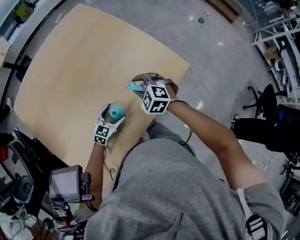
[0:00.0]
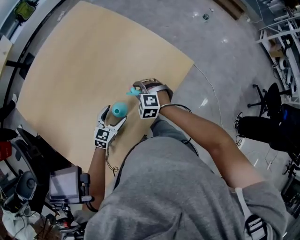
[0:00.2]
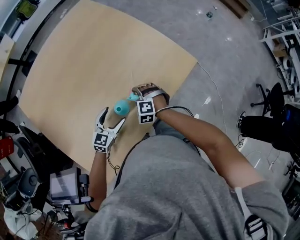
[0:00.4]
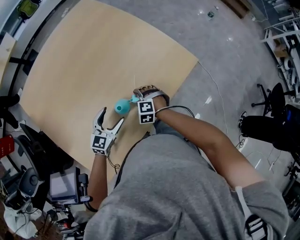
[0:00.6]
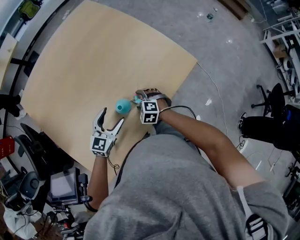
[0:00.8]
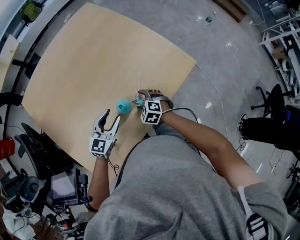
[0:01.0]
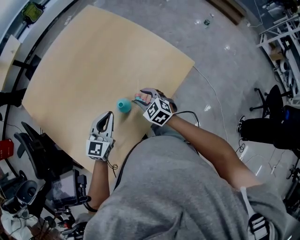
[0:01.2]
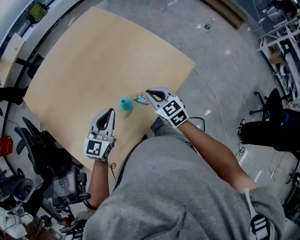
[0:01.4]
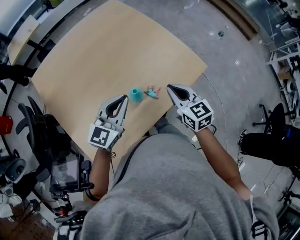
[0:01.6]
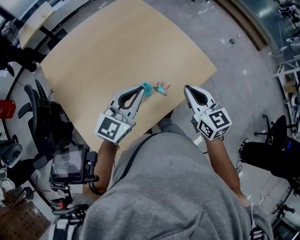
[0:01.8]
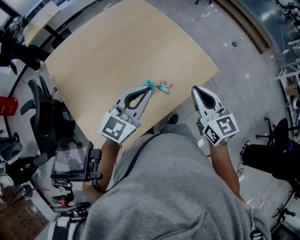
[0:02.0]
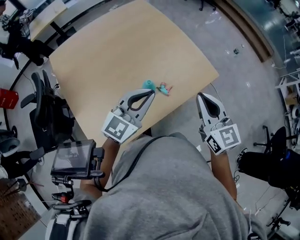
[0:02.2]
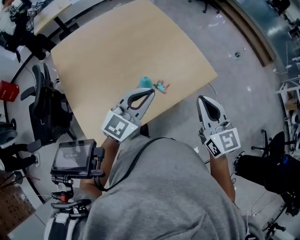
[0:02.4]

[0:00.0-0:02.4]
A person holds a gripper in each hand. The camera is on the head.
0:00.0 to 0:01.2: The left gripper is displaced upward and to the left by roughly 20 cm, swivels roughly 20 degrees, and closes, while the right gripper moves backward, roughly 10 cm, moves roughly 15 cm downward and comes back, and rotates some 20 degrees.
0:01.2 to 0:02.4: The right gripper travels upward and backward by about 30 cm, points its fingers about 30 degrees further upward, and closes up. Meanwhile the left gripper travels upward and backward by about 15 cm.

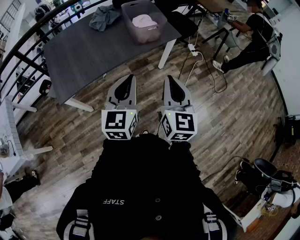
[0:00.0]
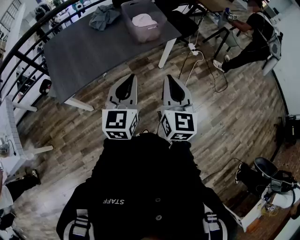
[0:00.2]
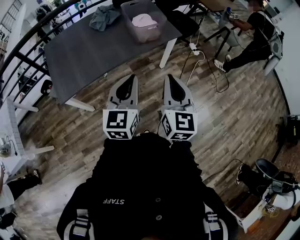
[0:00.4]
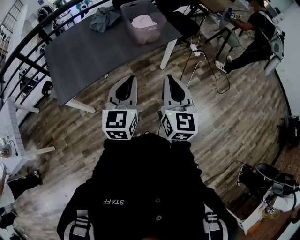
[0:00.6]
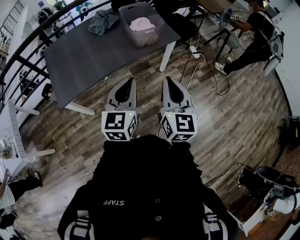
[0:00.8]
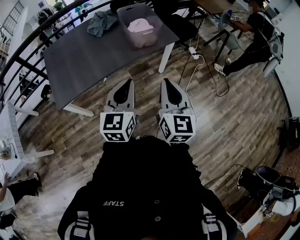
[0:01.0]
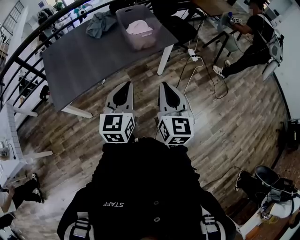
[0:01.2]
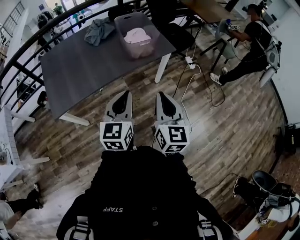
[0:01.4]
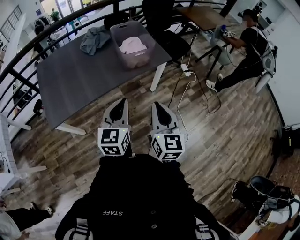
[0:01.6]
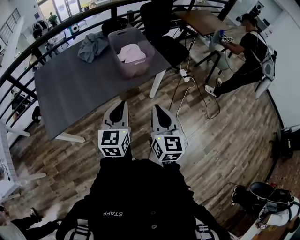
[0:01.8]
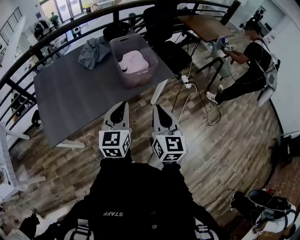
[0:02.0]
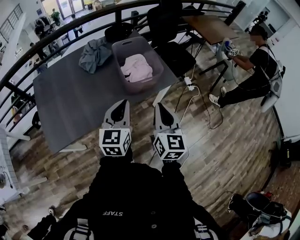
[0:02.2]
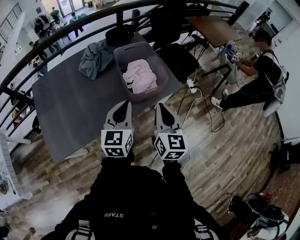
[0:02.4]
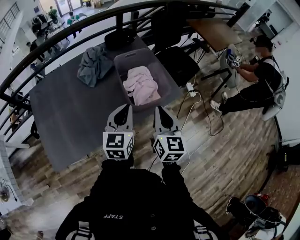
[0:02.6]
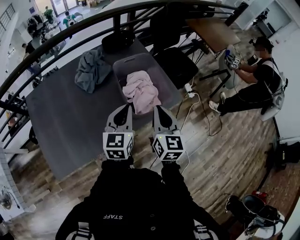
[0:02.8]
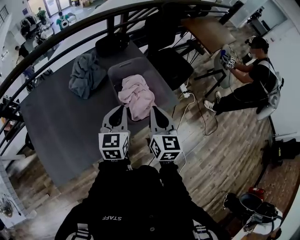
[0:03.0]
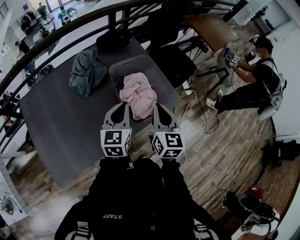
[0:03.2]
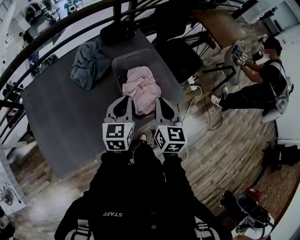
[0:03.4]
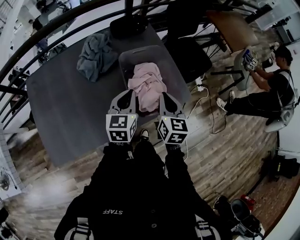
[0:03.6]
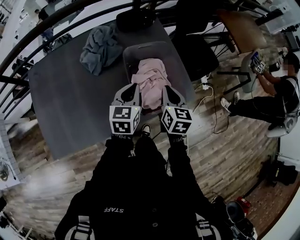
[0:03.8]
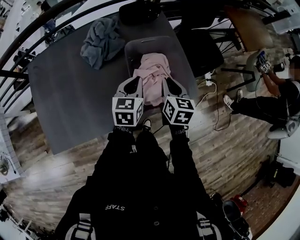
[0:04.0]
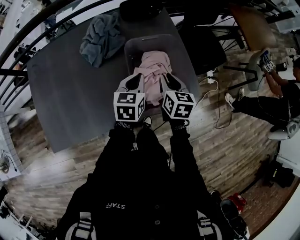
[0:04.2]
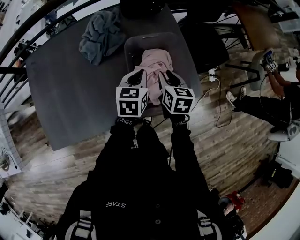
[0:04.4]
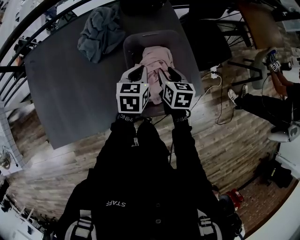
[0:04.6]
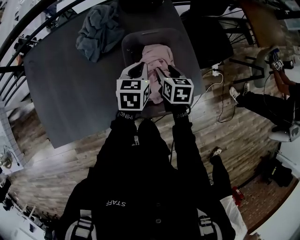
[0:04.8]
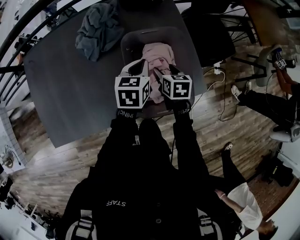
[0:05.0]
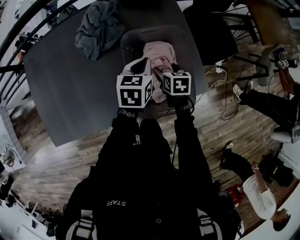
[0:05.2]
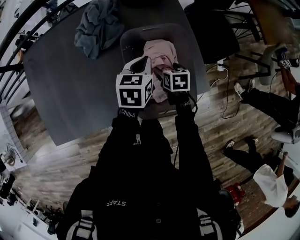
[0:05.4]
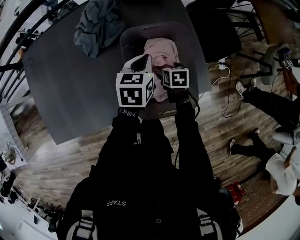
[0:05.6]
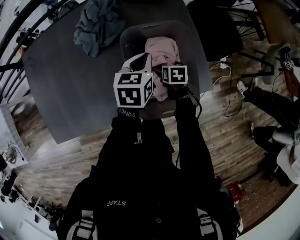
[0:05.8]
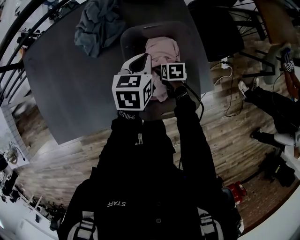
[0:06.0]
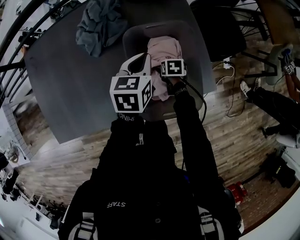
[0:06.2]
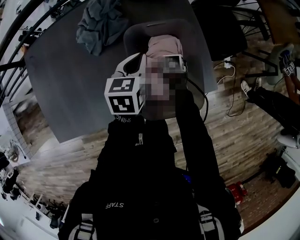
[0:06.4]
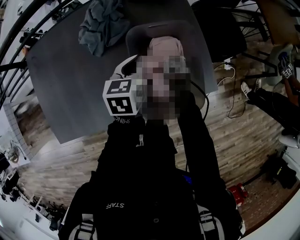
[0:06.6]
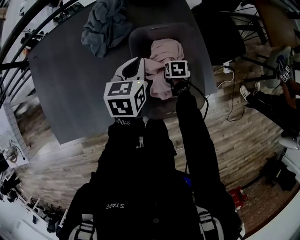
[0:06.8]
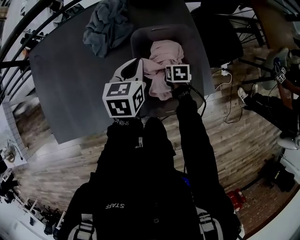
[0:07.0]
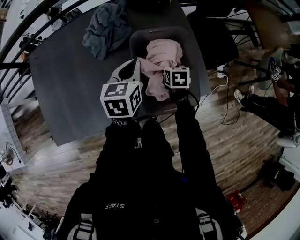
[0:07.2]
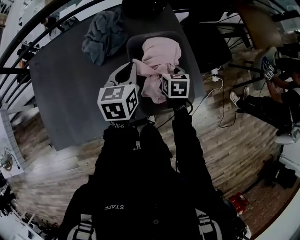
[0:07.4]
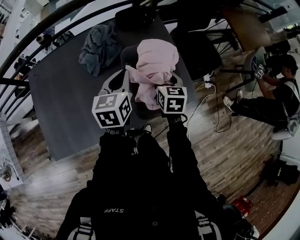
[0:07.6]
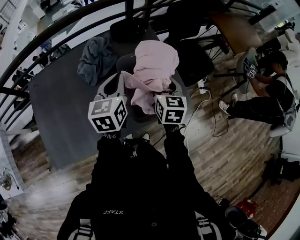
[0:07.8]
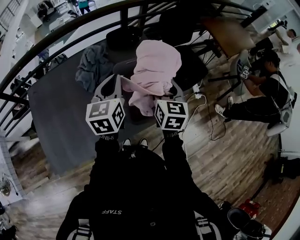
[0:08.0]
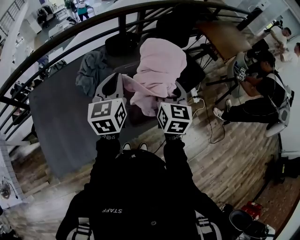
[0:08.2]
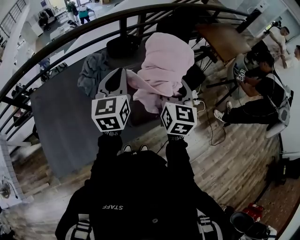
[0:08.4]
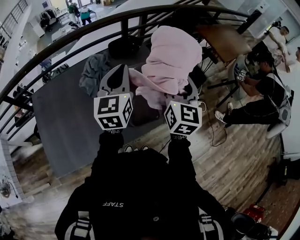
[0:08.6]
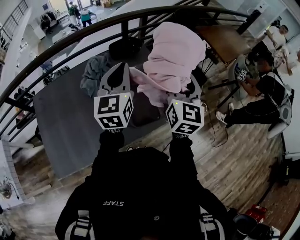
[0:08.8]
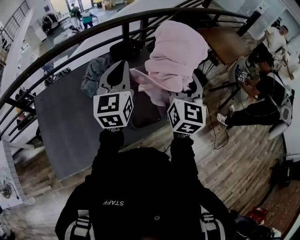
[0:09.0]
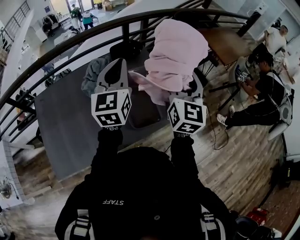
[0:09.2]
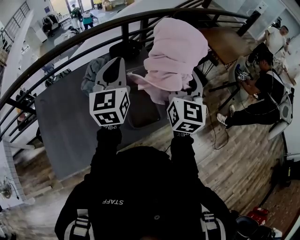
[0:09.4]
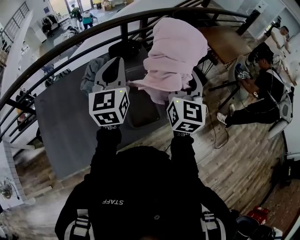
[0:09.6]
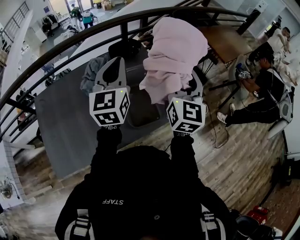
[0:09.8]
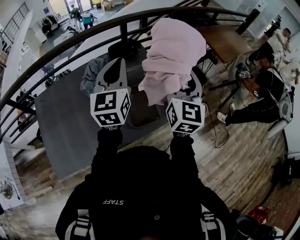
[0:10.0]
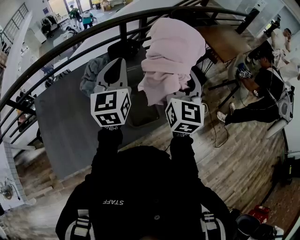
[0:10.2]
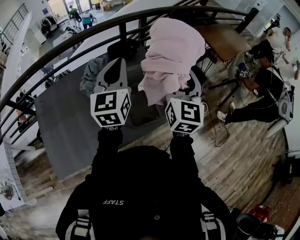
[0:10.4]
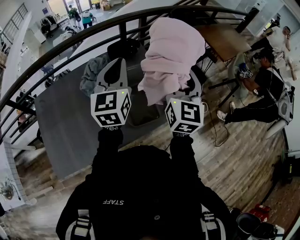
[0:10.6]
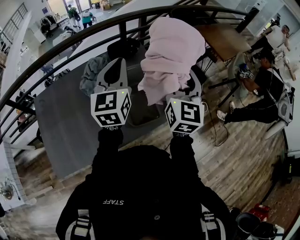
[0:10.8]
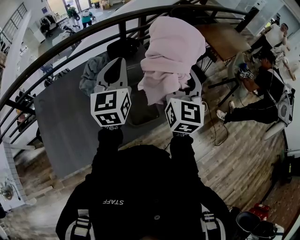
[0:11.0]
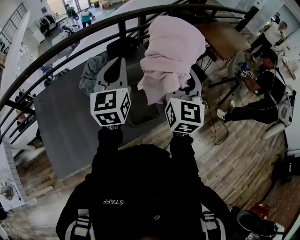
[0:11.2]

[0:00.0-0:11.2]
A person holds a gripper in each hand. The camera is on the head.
0:00.0 to 0:01.6: The right gripper shifts about 10 cm forward, while the left gripper travels forward and downward by some 10 cm.
0:01.6 to 0:03.2: The two grippers travel together, forward, about 50 cm.
0:03.2 to 0:04.8: The left gripper travels forward and downward by about 20 cm, and turns by about 20 degrees, while the right gripper shifts approximately 30 cm downward and forward, rotates roughly 40 degrees, and opens up.
0:04.8 to 0:06.4: The right gripper travels downward by about 20 cm, swivels about 30 degrees, and opens up.
0:06.4 to 0:08.0: The right gripper heads upward, covering about 40 cm, points its fingers roughly 50 degrees further upward, and closes. Meanwhile the left gripper shifts about 20 cm upward, and turns by some 20 degrees.
0:08.0 to 0:09.6: Both grippers move upward, about 15 cm. The left gripper swivels roughly 20 degrees; the right gripper rotates some 30 degrees.
0:09.6 to 0:11.2: There are only small adjustments of the grippers.

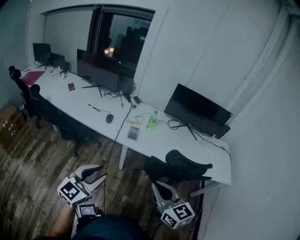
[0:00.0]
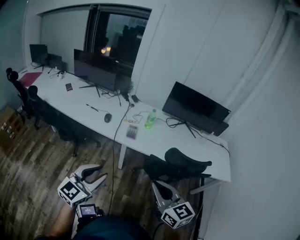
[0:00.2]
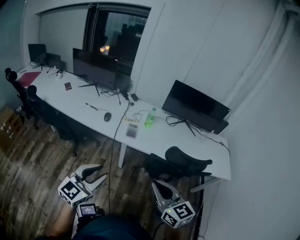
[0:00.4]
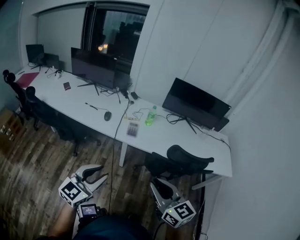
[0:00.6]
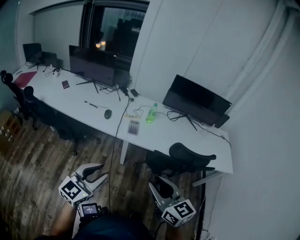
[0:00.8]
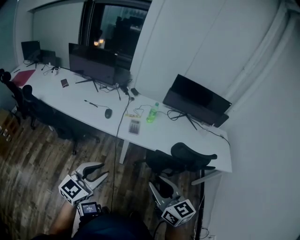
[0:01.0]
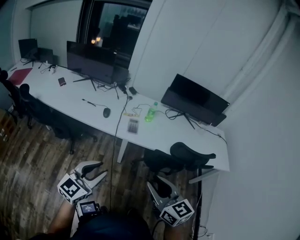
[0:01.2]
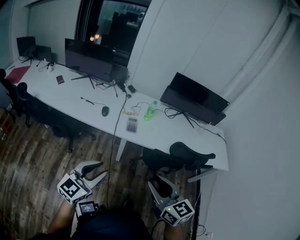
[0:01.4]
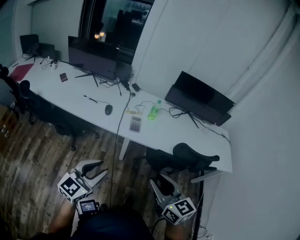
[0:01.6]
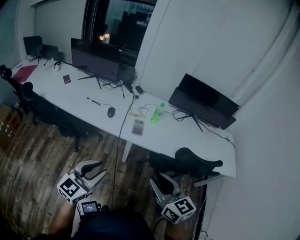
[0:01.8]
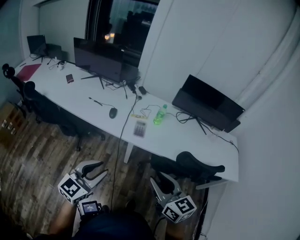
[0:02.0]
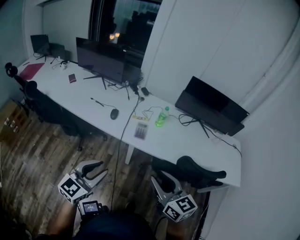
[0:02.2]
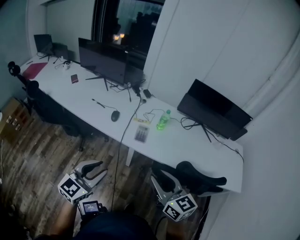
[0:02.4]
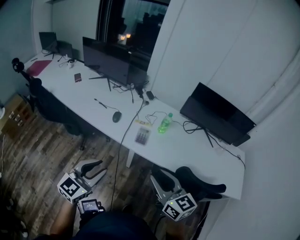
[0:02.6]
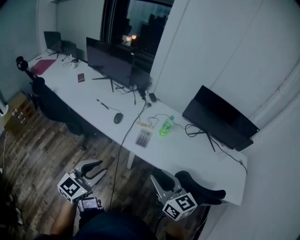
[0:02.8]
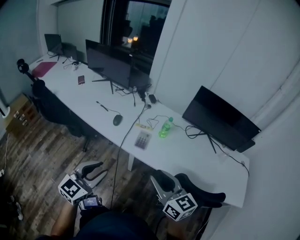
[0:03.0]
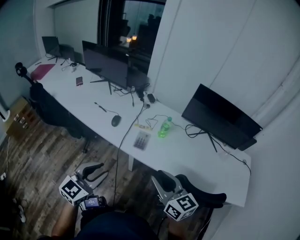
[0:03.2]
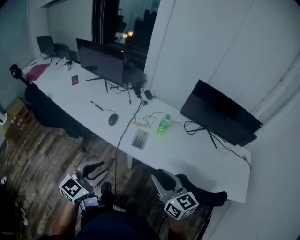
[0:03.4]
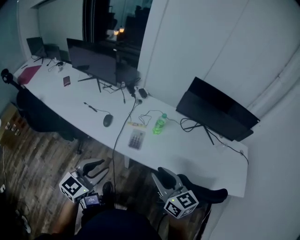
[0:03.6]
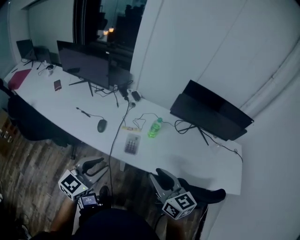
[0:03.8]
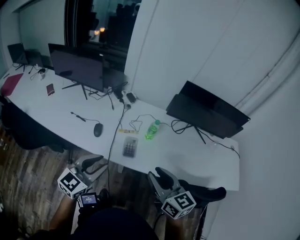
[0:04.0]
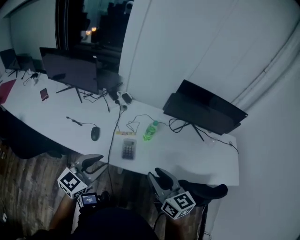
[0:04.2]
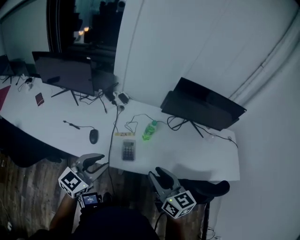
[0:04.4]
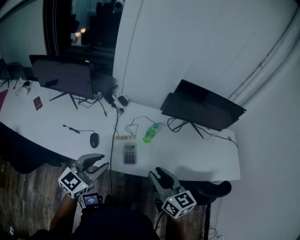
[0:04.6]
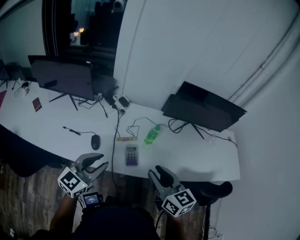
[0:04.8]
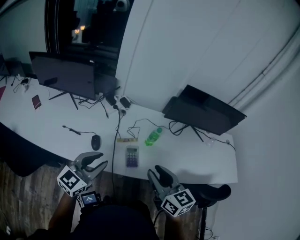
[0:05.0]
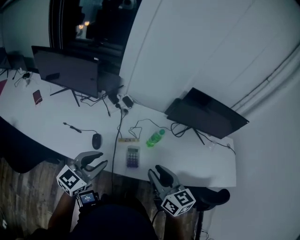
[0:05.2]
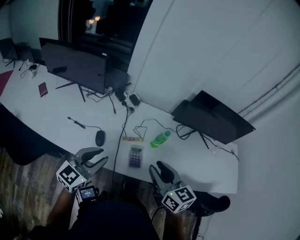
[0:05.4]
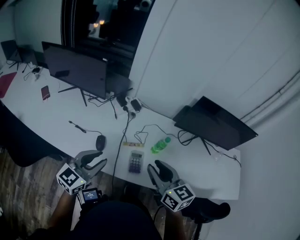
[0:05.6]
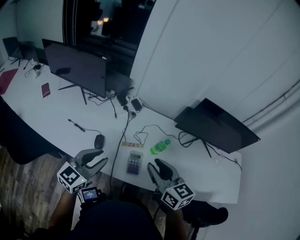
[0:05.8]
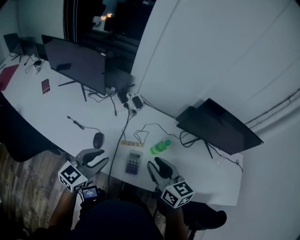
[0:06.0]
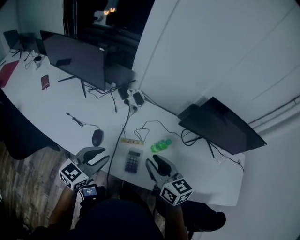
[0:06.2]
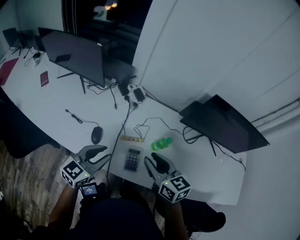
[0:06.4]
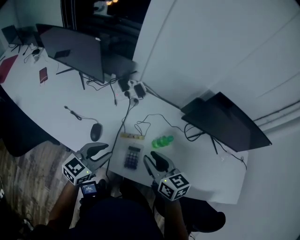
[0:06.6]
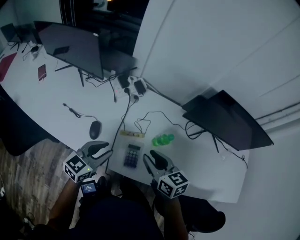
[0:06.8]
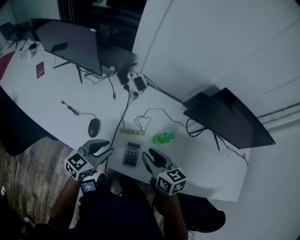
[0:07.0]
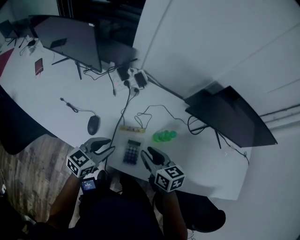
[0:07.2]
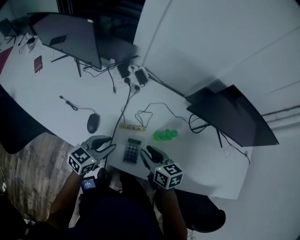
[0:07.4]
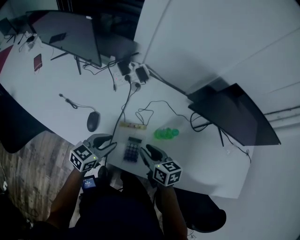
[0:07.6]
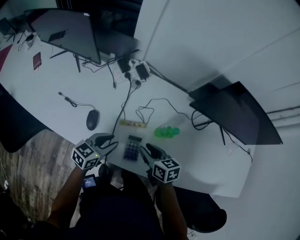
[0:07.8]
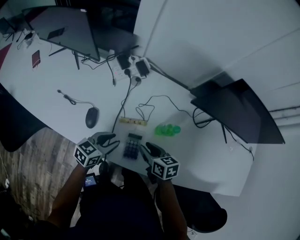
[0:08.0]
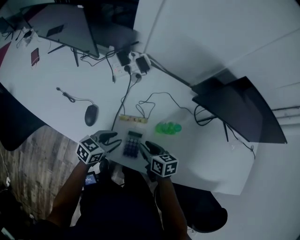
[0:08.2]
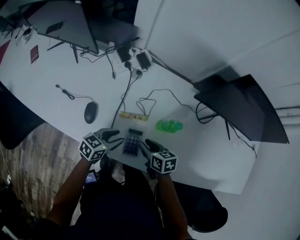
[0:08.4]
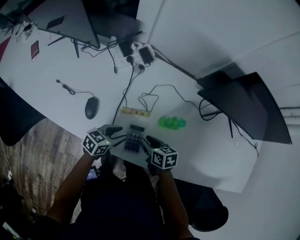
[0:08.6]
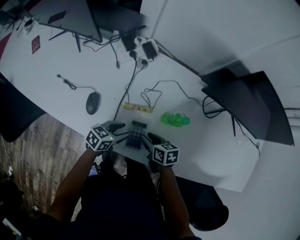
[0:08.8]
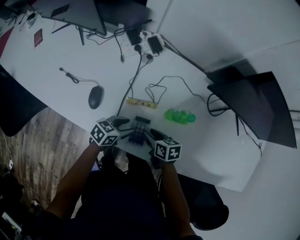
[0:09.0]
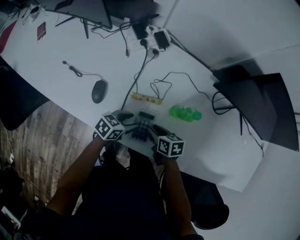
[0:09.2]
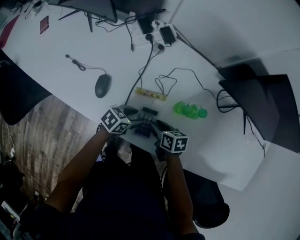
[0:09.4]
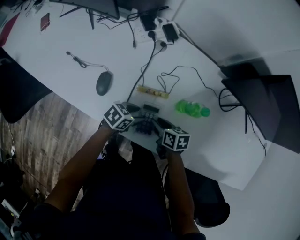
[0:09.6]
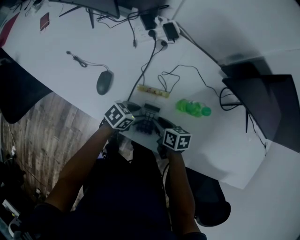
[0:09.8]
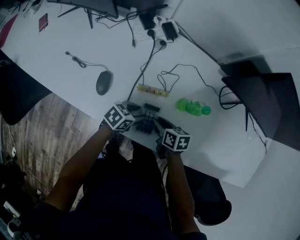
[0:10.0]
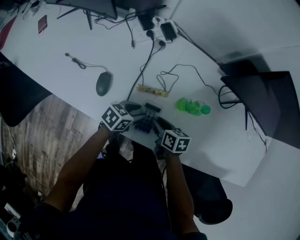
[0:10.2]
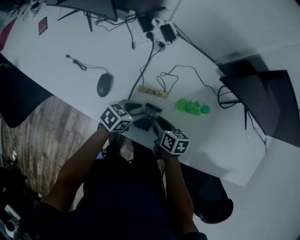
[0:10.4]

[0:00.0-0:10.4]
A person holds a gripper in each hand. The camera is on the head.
0:00.0 to 0:01.4: The two grippers go approximately 5 cm to the left. The right gripper opens its fingers.
0:01.4 to 0:03.0: The left gripper is displaced forward and to the right by about 15 cm; the right gripper moves forward, approximately 20 cm.
0:03.0 to 0:04.4: The right gripper shifts some 15 cm forward, and changes its angle by approximately 20 degrees, while the left gripper moves forward, about 20 cm, and swivels approximately 20 degrees.
0:04.4 to 0:06.0: The right gripper goes approximately 15 cm forward. The left gripper is displaced forward and to the left by about 15 cm.
0:06.0 to 0:07.4: The right gripper travels downward by some 15 cm, and swivels approximately 20 degrees. The left gripper heads downward and forward, covering roughly 15 cm.
0:07.4 to 0:09.0: The left gripper shifts roughly 15 cm downward and to the right, rotates approximately 20 degrees, and opens, while the right gripper heads downward, covering roughly 15 cm, and rotates about 20 degrees.
0:09.0 to 0:10.4: The grippers stay close to where they were, moving slightly.
